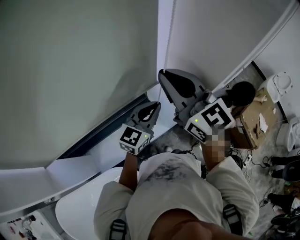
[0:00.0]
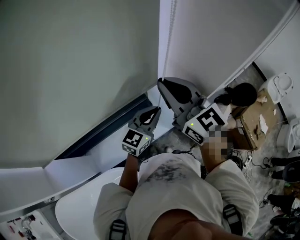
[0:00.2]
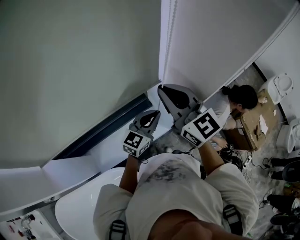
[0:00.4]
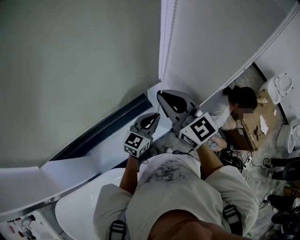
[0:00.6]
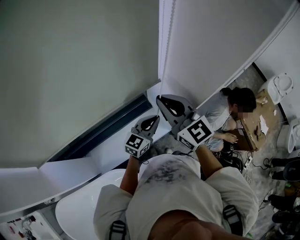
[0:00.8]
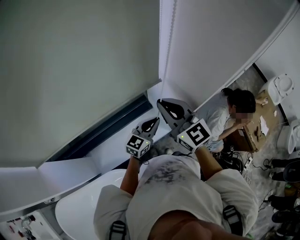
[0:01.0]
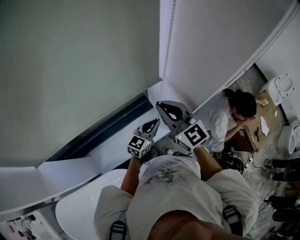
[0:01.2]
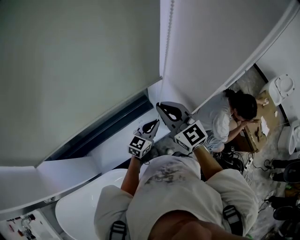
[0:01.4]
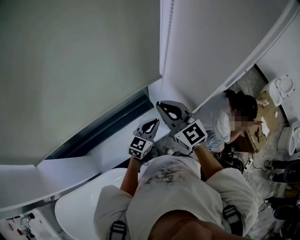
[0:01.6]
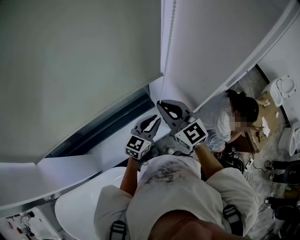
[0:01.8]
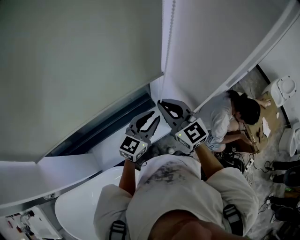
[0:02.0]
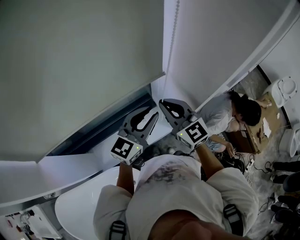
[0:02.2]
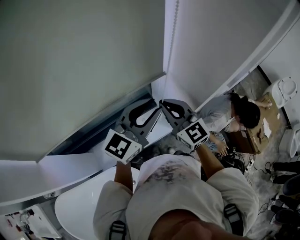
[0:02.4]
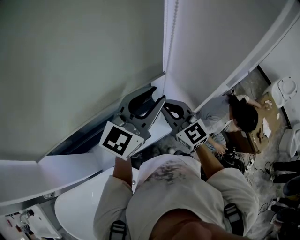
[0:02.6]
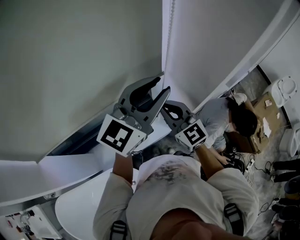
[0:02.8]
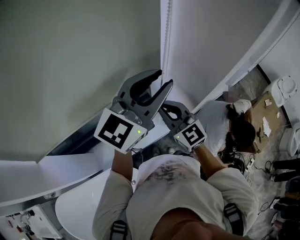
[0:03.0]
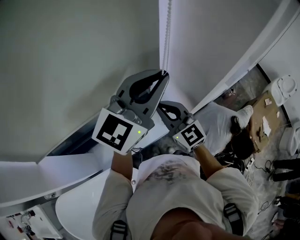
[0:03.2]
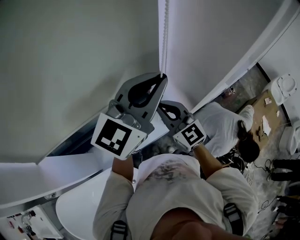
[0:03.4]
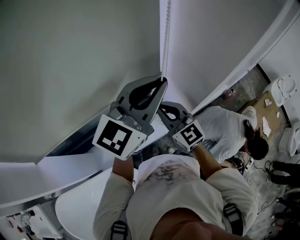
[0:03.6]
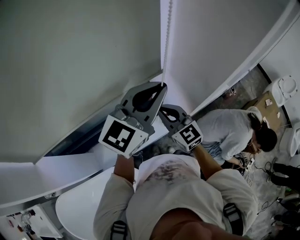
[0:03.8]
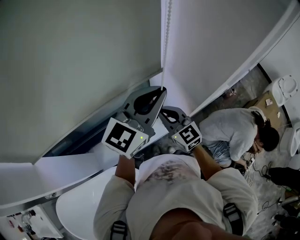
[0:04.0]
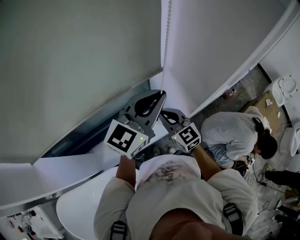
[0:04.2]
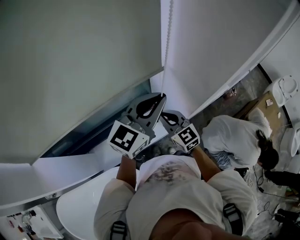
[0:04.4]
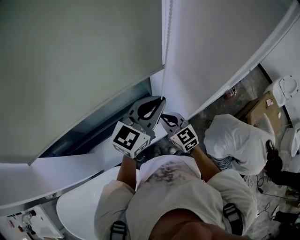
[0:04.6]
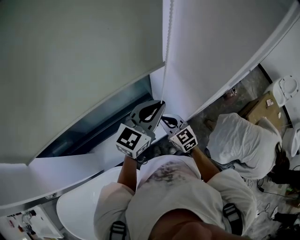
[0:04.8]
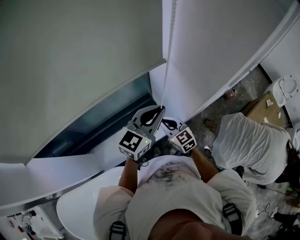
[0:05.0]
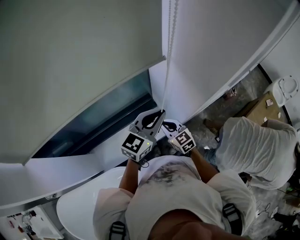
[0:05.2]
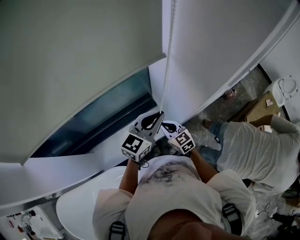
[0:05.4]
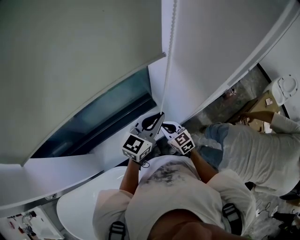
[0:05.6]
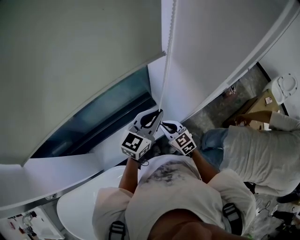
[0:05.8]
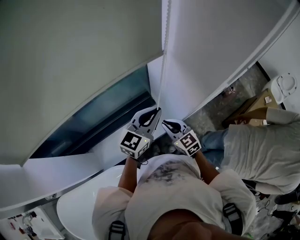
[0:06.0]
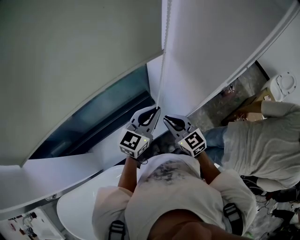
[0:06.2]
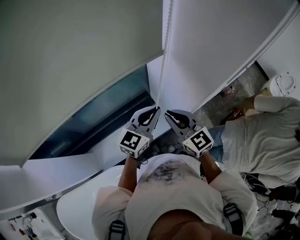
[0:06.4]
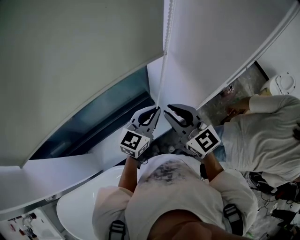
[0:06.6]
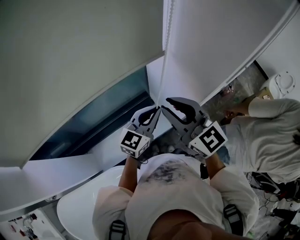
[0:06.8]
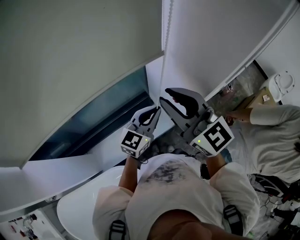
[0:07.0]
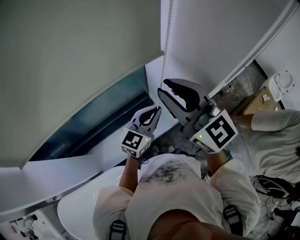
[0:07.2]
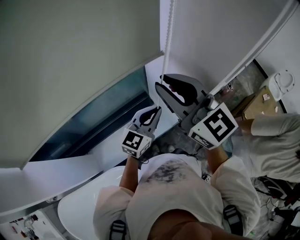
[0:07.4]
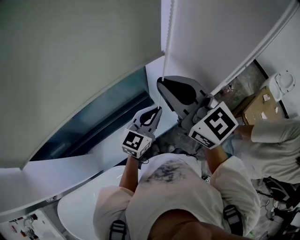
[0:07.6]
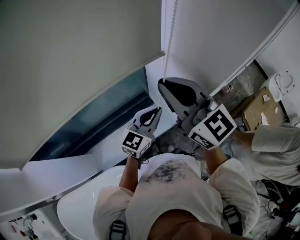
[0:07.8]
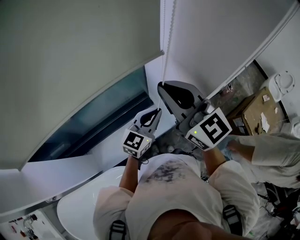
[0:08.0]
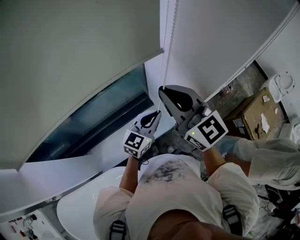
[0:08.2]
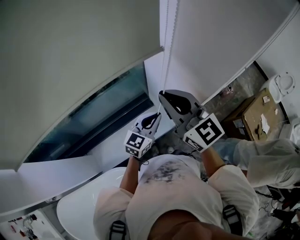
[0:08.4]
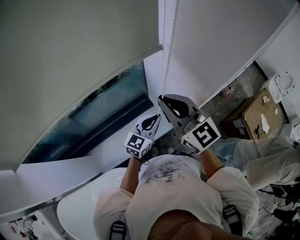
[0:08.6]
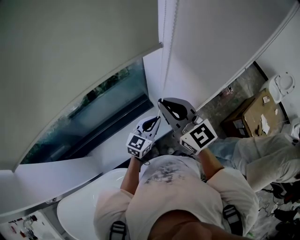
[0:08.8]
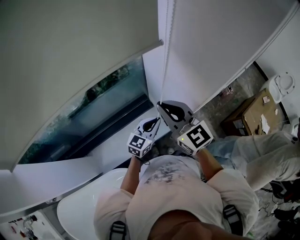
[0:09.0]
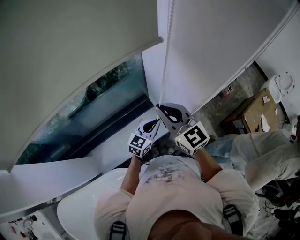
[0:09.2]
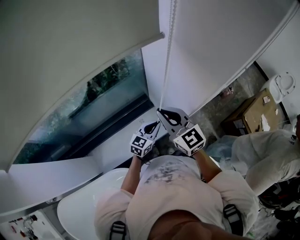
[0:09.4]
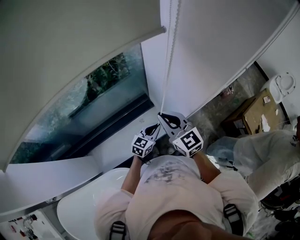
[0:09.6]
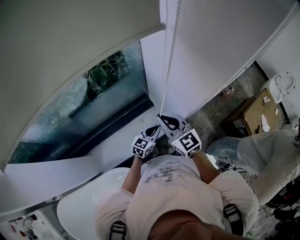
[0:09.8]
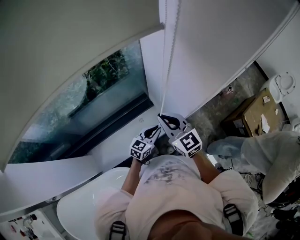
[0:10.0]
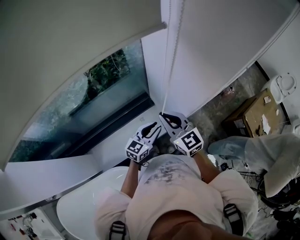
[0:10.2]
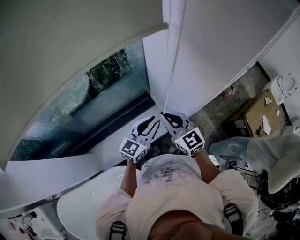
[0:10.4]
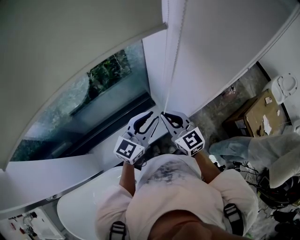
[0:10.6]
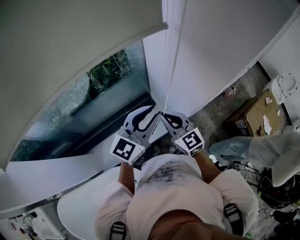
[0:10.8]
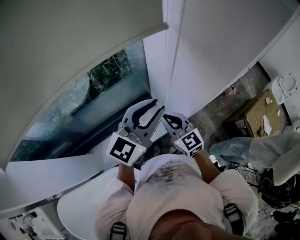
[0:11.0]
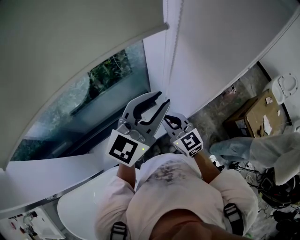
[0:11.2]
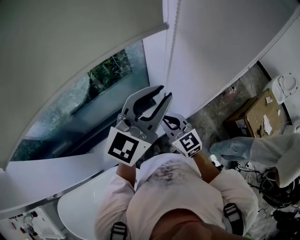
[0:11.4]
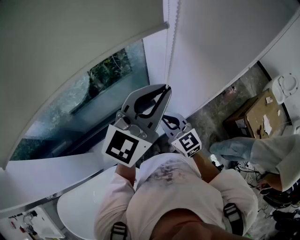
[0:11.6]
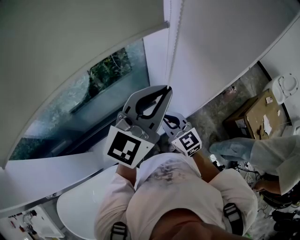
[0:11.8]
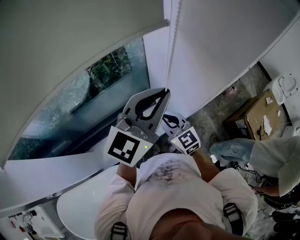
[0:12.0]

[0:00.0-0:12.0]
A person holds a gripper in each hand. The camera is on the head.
0:00.0 to 0:01.6: The grippers both shift downward by about 15 cm.
0:01.6 to 0:03.0: The left gripper travels upward by roughly 35 cm, rotates approximately 20 degrees, and opens its fingers.
0:03.0 to 0:04.4: The grippers both shift downward by approximately 10 cm. The left gripper closes.
0:04.4 to 0:06.0: The left gripper shifts roughly 10 cm downward, while the right gripper shifts roughly 5 cm downward.
0:06.0 to 0:07.6: The right gripper goes approximately 30 cm upward, and rotates roughly 30 degrees.
0:07.6 to 0:09.0: Both grippers move downward, roughly 10 cm.
0:09.0 to 0:10.4: The left gripper reaches about 10 cm downward, then returns. Meanwhile the right gripper moves downward, about 10 cm.
0:10.4 to 0:12.0: The left gripper travels upward by approximately 25 cm.

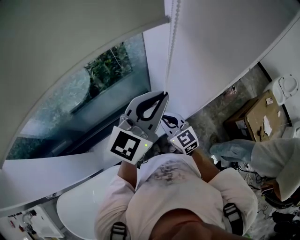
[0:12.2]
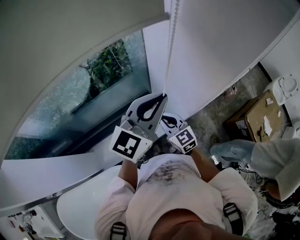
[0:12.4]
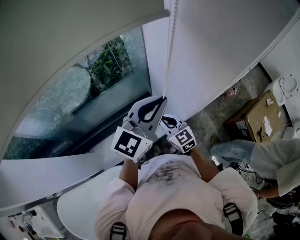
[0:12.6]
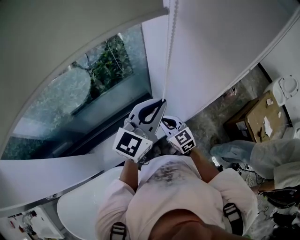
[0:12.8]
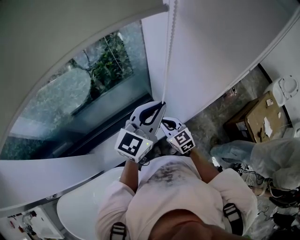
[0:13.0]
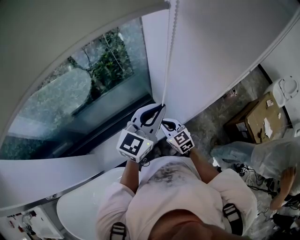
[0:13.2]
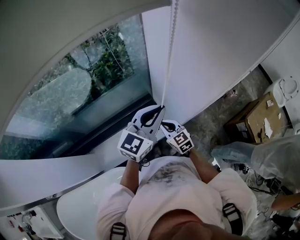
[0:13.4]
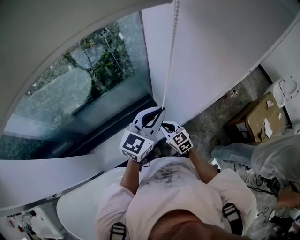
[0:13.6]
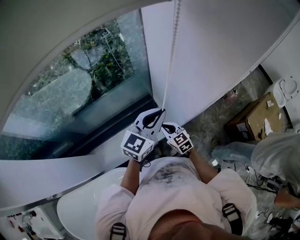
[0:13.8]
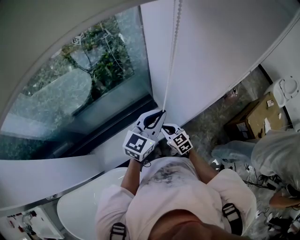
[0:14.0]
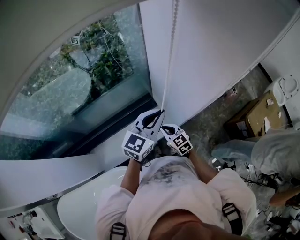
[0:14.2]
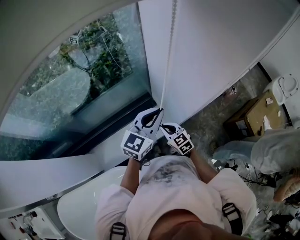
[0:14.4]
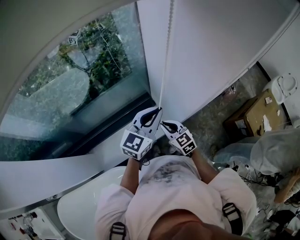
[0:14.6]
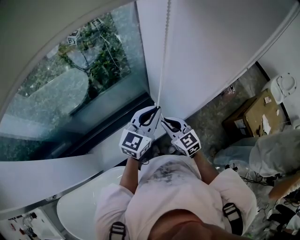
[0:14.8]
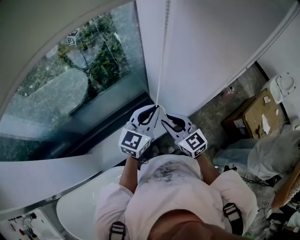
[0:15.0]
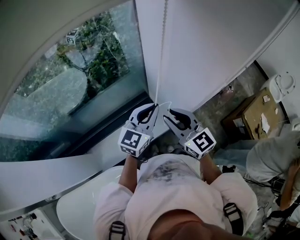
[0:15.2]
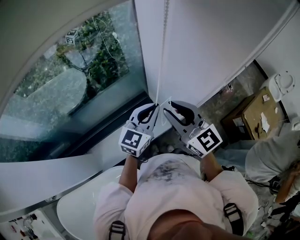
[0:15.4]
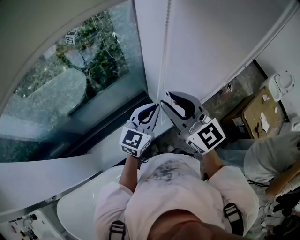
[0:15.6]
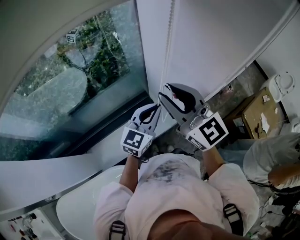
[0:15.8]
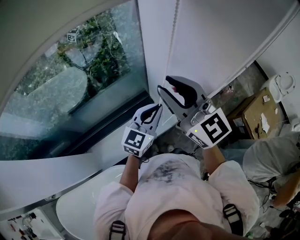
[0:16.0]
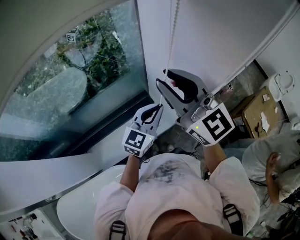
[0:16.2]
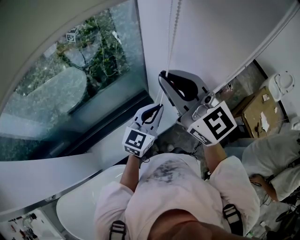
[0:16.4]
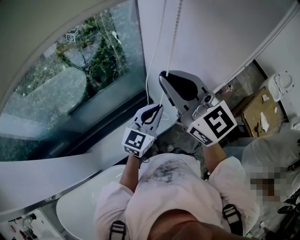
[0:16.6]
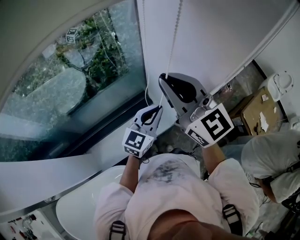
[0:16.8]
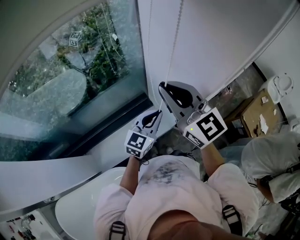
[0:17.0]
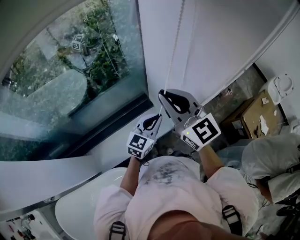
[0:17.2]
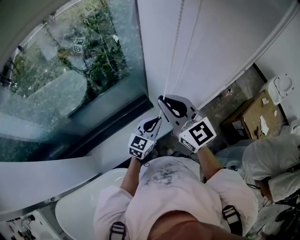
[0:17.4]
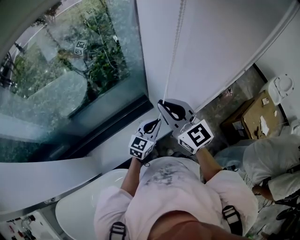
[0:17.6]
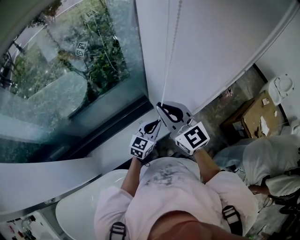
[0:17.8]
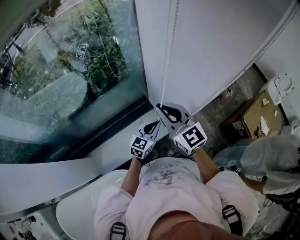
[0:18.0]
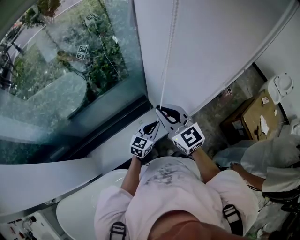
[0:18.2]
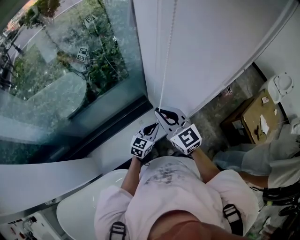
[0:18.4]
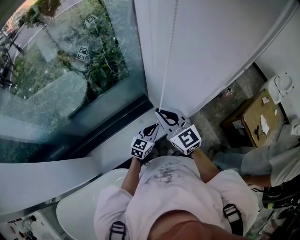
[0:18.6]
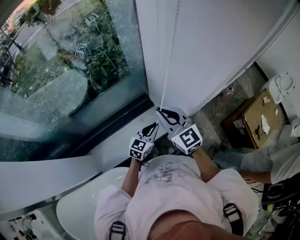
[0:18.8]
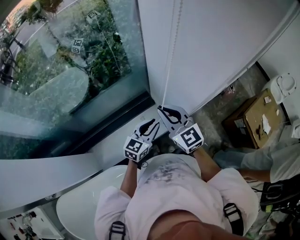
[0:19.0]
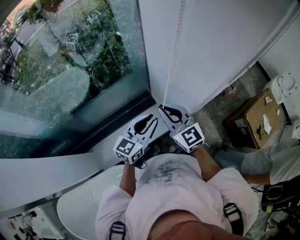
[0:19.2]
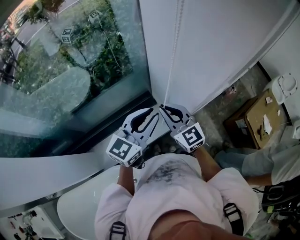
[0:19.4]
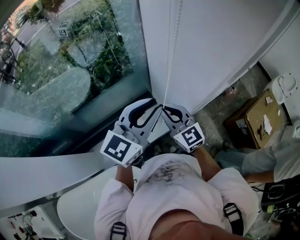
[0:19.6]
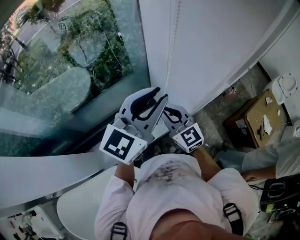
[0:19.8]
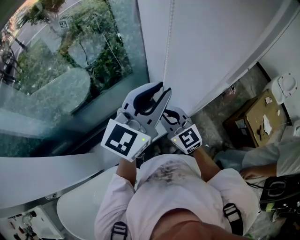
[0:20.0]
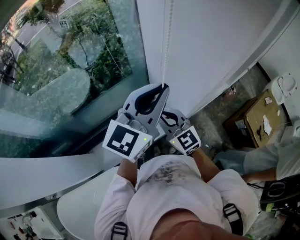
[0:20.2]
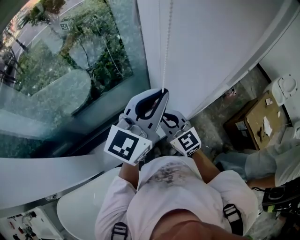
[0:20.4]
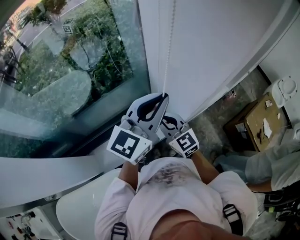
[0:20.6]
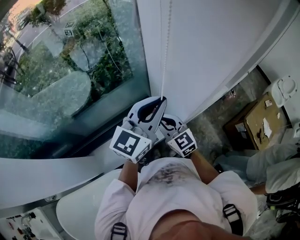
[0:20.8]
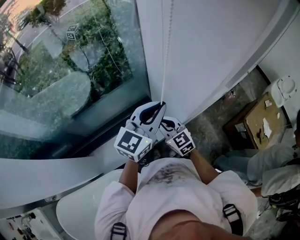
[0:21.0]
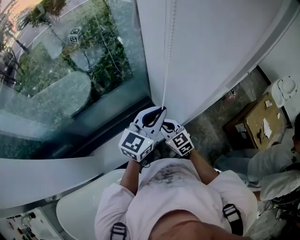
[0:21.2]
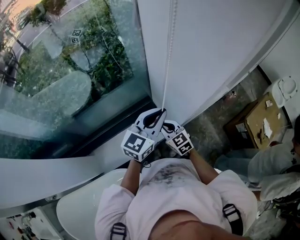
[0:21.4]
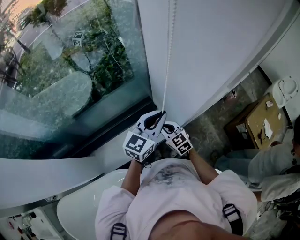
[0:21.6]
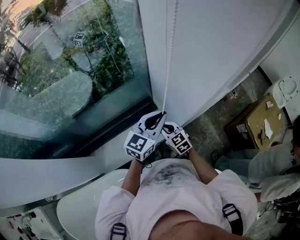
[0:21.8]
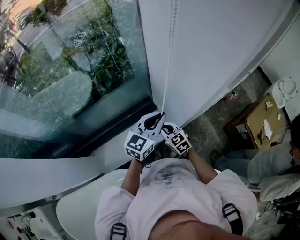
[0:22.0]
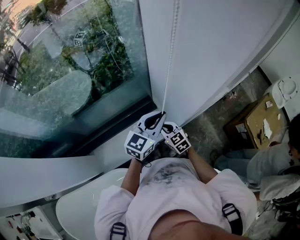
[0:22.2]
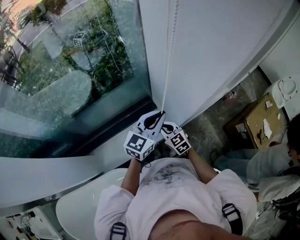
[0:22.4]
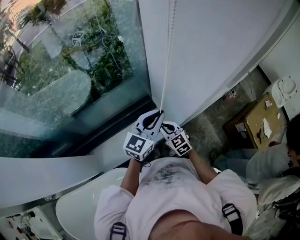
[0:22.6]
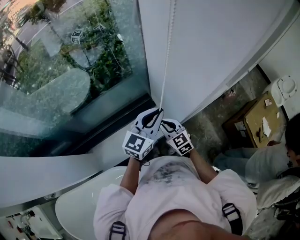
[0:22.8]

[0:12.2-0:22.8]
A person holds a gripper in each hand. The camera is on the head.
0:12.2 to 0:13.8: Both grippers move downward, roughly 15 cm.
0:13.8 to 0:15.2: The right gripper shifts approximately 20 cm upward, rotates roughly 20 degrees, and opens.
0:15.2 to 0:16.8: The right gripper goes roughly 15 cm upward.
0:16.8 to 0:18.2: The two grippers go about 15 cm downward.
0:18.2 to 0:19.8: The left gripper is displaced upward by approximately 35 cm, and rotates about 20 degrees.
0:19.8 to 0:21.2: Both grippers move downward, about 15 cm.

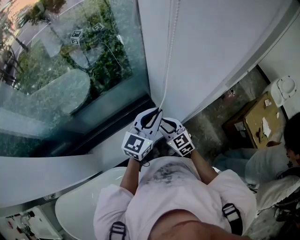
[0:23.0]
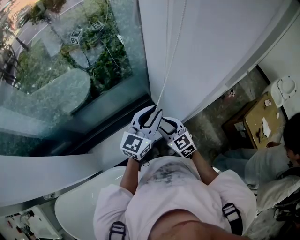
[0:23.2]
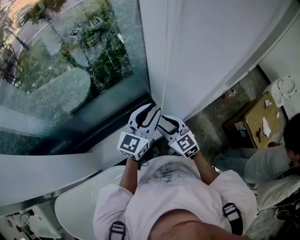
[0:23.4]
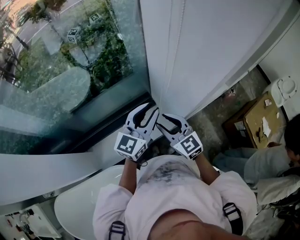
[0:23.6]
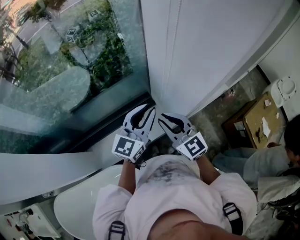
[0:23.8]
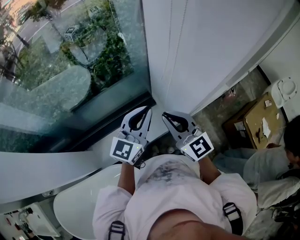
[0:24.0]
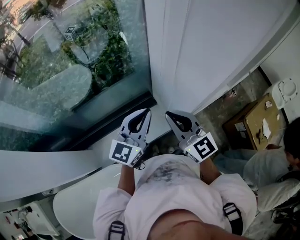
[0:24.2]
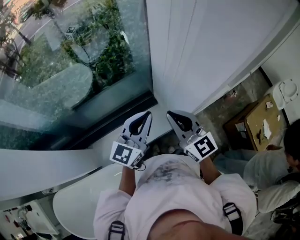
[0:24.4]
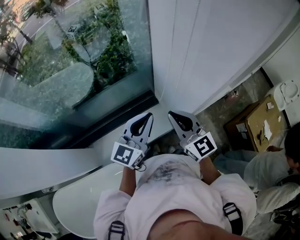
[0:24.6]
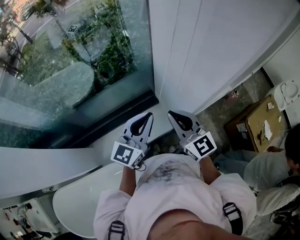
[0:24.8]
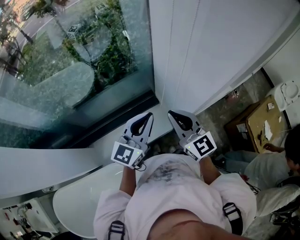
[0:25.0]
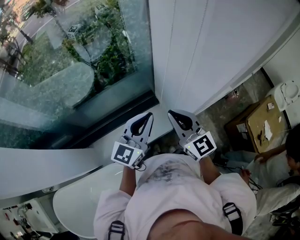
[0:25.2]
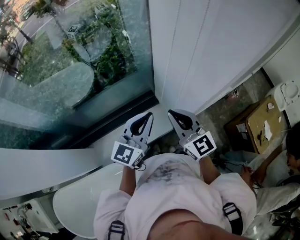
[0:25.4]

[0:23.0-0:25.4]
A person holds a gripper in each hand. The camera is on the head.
0:23.0 to 0:24.2: The right gripper goes some 20 cm upward, swivels some 20 degrees, and closes, while the left gripper moves to the left, approximately 5 cm, and opens, then closes again.
0:24.2 to 0:25.4: The grippers stay close to where they were, moving slightly.
